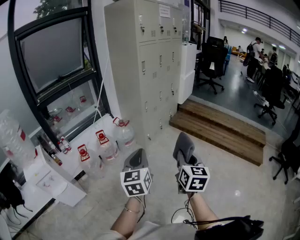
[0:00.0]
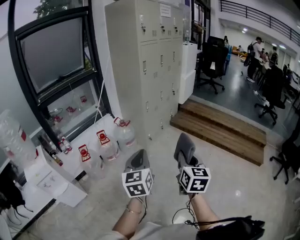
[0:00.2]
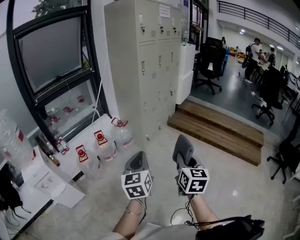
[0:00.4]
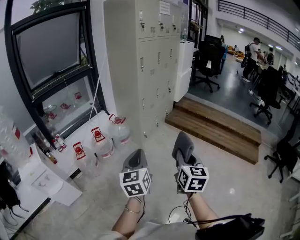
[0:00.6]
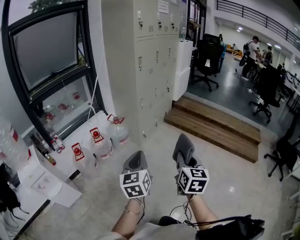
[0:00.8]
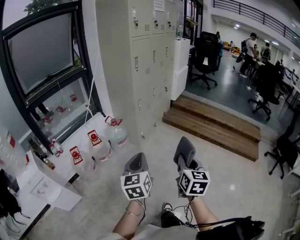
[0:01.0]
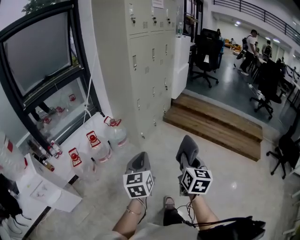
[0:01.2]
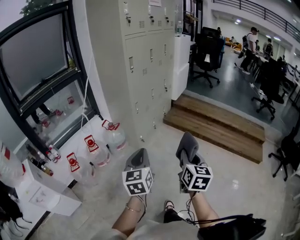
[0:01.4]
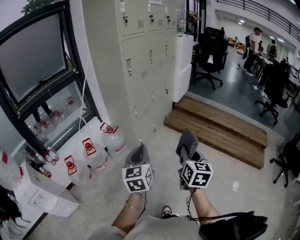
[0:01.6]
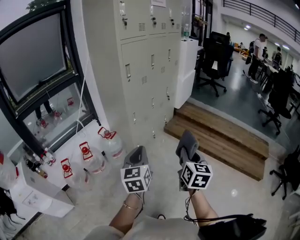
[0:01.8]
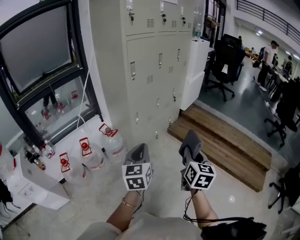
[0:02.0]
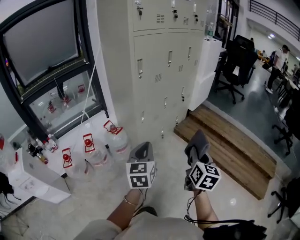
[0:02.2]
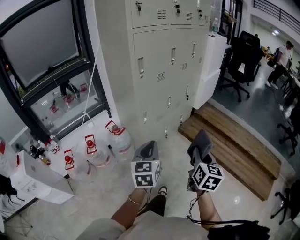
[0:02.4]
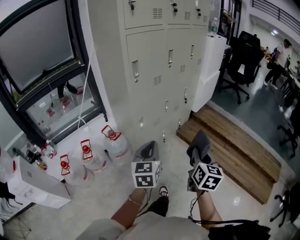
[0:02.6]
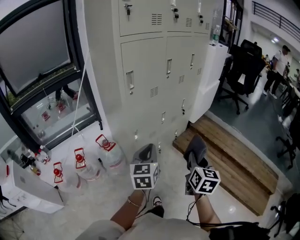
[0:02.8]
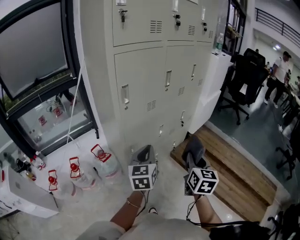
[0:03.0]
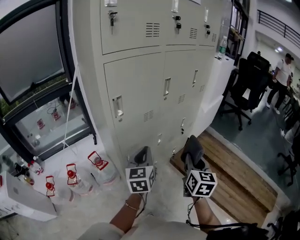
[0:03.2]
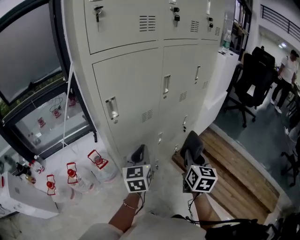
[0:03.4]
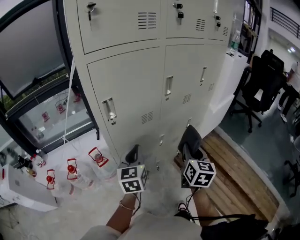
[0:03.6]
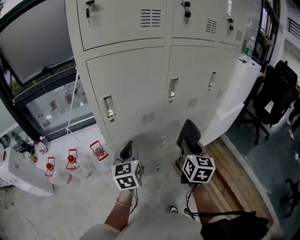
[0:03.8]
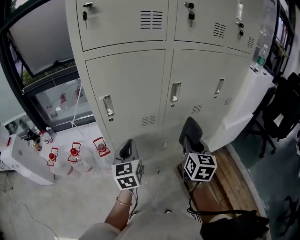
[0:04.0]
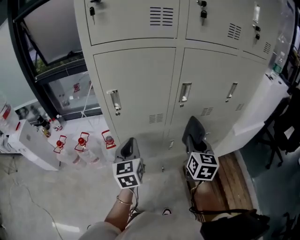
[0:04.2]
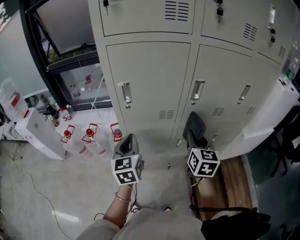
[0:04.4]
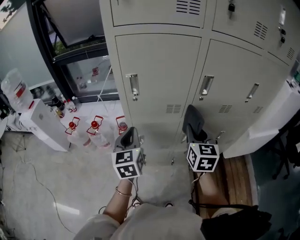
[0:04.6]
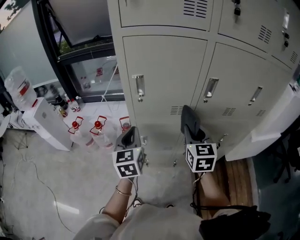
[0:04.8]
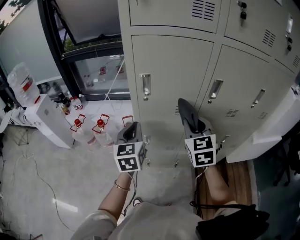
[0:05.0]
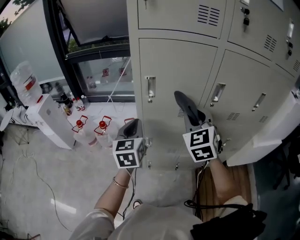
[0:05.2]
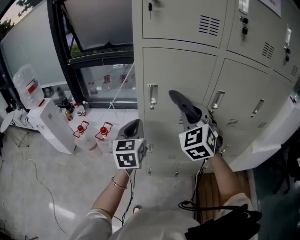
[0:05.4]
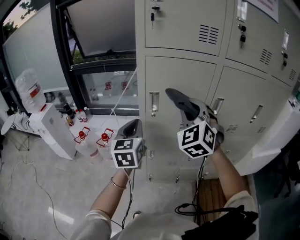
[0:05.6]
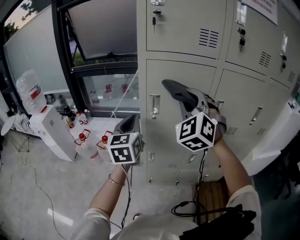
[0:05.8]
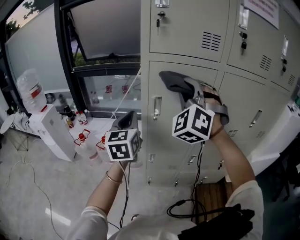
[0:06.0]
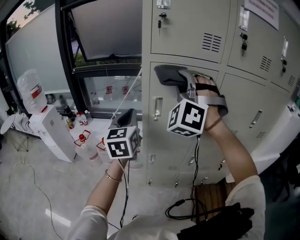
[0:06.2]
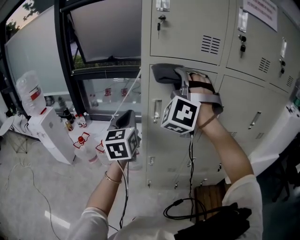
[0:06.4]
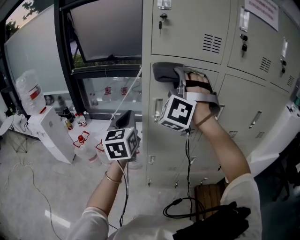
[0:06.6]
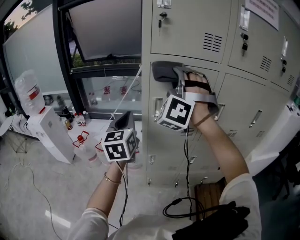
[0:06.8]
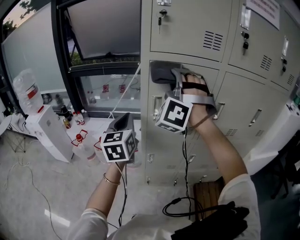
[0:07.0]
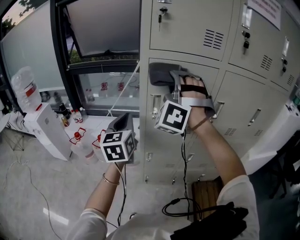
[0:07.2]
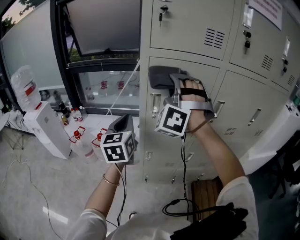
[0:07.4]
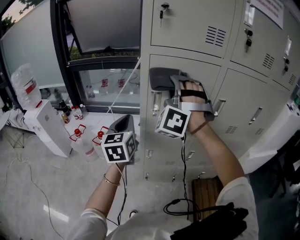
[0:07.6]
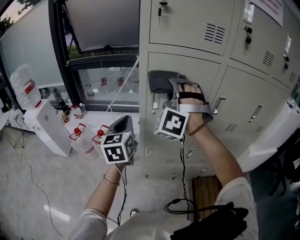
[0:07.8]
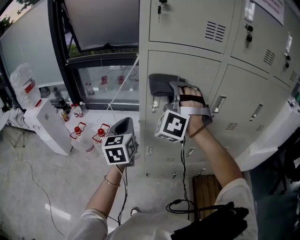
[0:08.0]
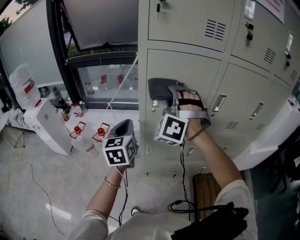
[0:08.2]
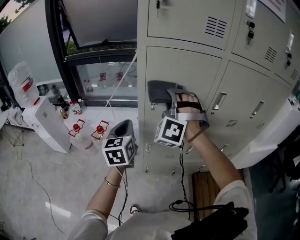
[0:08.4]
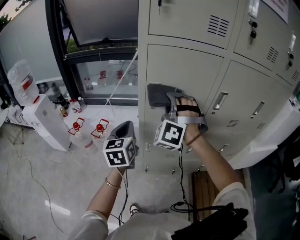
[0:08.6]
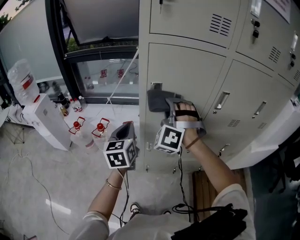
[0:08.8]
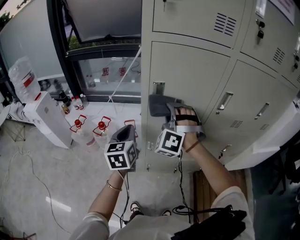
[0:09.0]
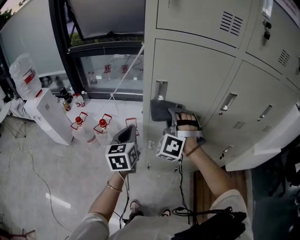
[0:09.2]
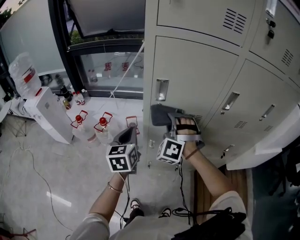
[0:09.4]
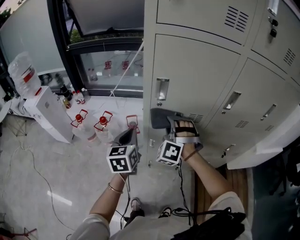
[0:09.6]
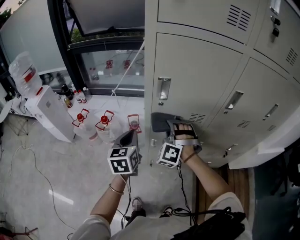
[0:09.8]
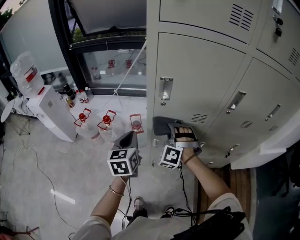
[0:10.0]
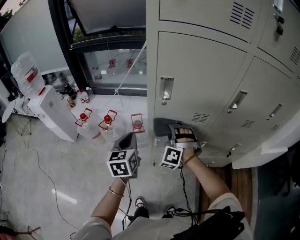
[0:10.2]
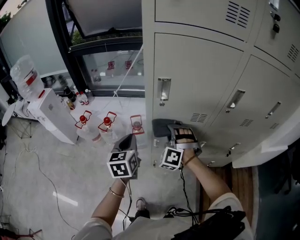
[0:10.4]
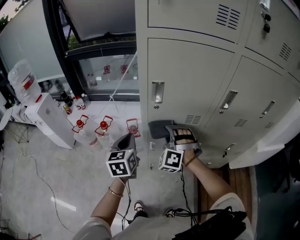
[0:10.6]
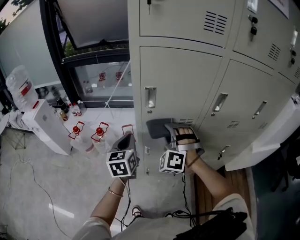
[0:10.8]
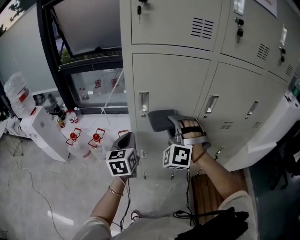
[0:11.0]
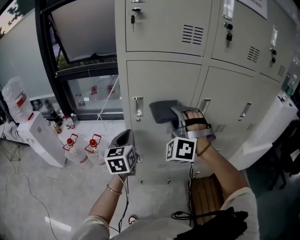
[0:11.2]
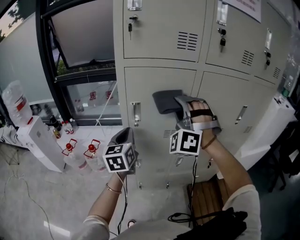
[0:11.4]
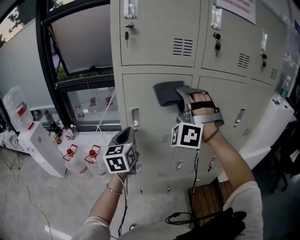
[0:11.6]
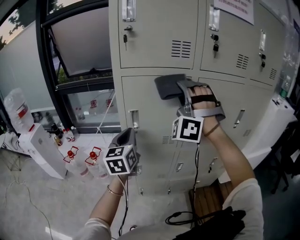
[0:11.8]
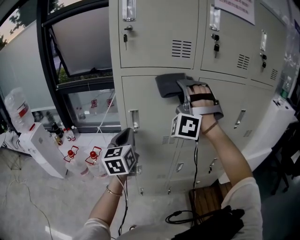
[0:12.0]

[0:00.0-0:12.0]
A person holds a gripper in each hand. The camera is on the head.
0.0 to 1.6 s: Both grippers travel together forward, about 25 cm.
1.6 to 3.0 s: Both grippers are carried forward, roughly 50 cm.
3.0 to 4.4 s: The right gripper changes place by roughly 30 cm, and changes its angle by approximately 40 degrees; the left gripper moves roughly 10 cm, and rotates roughly 40 degrees.
4.4 to 6.0 s: The right gripper goes some 35 cm upward and to the left, and rolls counterclockwise, seen from behind, by approximately 80 degrees; the left gripper travels upward and to the left by approximately 20 cm.
6.0 to 7.6 s: The right gripper shifts by some 5 cm.
7.6 to 9.0 s: The left gripper travels downward by some 10 cm. Meanwhile the right gripper is displaced downward by some 15 cm.
9.0 to 10.4 s: The right gripper shifts about 15 cm downward; the left gripper moves downward, roughly 5 cm.
10.4 to 12.0 s: The left gripper goes some 20 cm upward and to the right, and rotates about 20 degrees, while the right gripper goes roughly 40 cm upward, and tilts its fingers approximately 40 degrees upward.

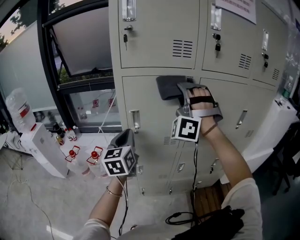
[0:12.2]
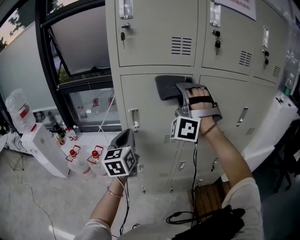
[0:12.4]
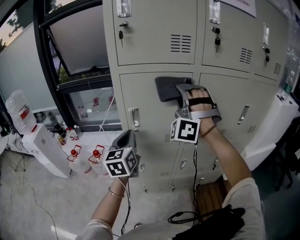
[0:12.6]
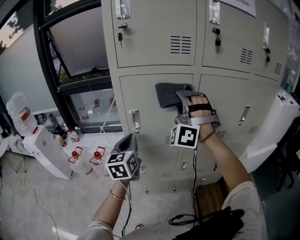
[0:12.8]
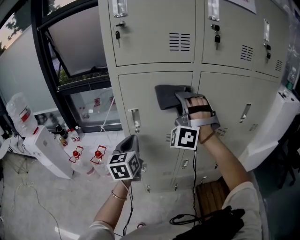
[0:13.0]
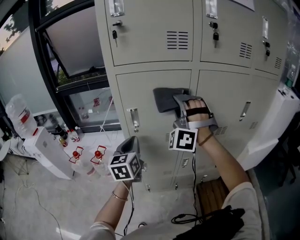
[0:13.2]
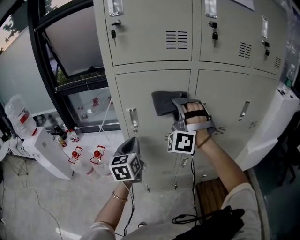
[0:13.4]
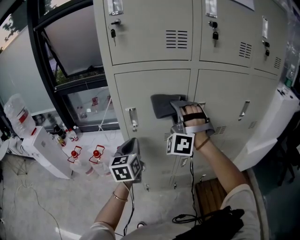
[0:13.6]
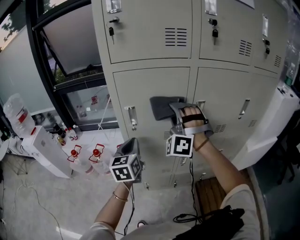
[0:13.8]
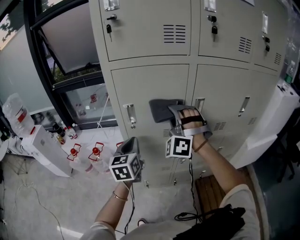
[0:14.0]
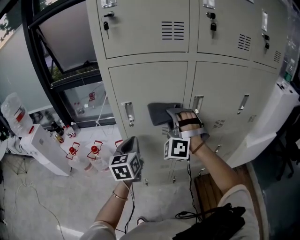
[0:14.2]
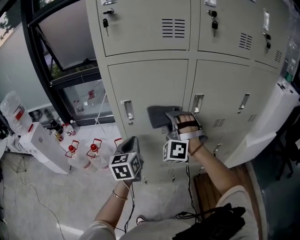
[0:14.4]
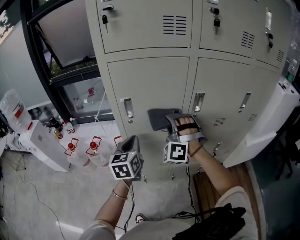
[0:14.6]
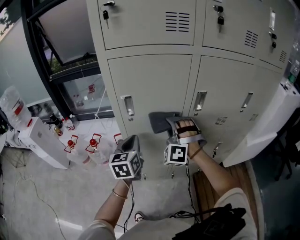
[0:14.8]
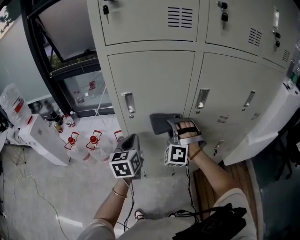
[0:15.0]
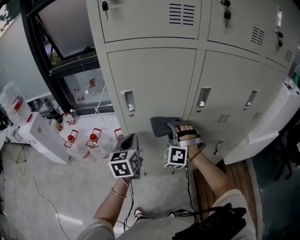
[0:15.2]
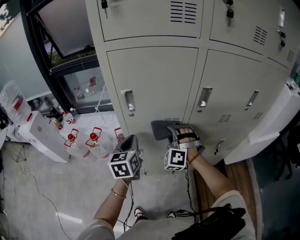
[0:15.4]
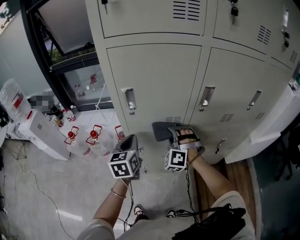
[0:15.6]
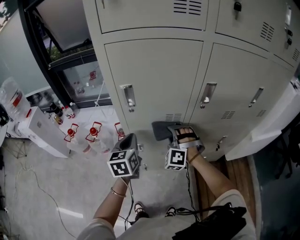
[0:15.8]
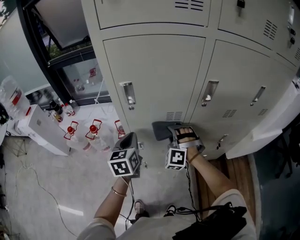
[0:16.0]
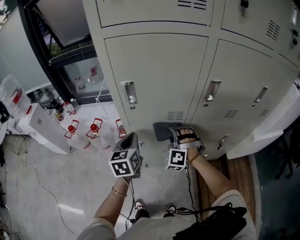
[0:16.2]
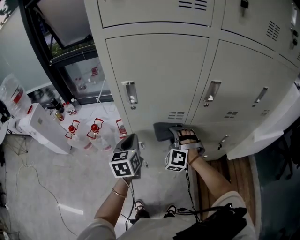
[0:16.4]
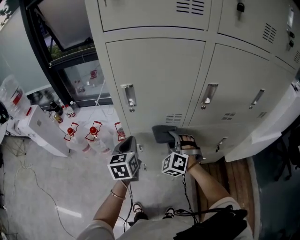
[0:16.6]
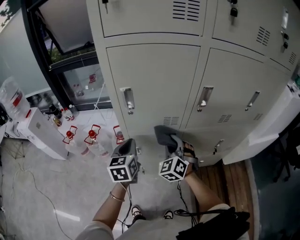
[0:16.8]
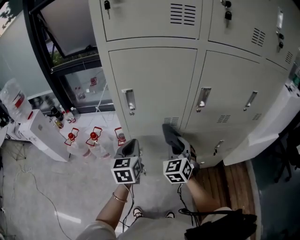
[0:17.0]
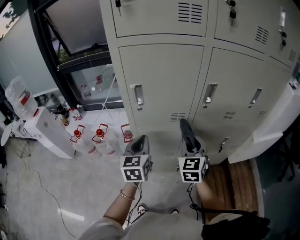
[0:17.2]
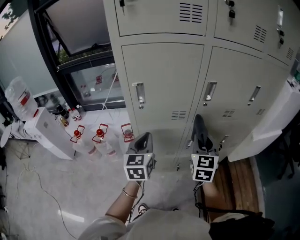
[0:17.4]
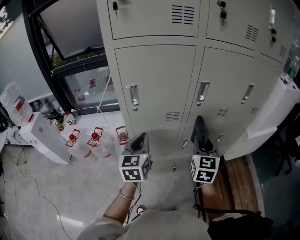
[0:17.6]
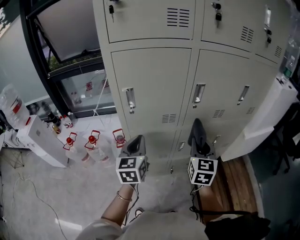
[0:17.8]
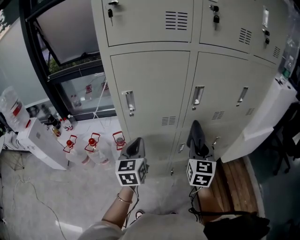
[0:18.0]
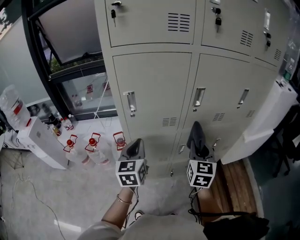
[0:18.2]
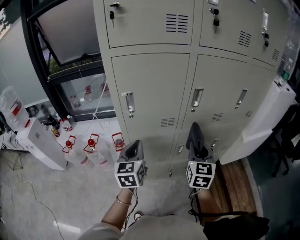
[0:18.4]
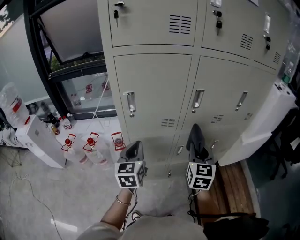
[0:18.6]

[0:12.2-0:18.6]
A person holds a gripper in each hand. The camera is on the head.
12.2 to 13.8 s: The right gripper shifts approximately 10 cm downward, while the left gripper is displaced downward by some 10 cm.
13.8 to 15.4 s: The right gripper travels downward by about 20 cm, and swivels about 20 degrees, while the left gripper is displaced downward by roughly 5 cm.
15.4 to 17.0 s: The right gripper goes some 5 cm backward, goes downward and returns, approximately 5 cm each way, and rolls clockwise, seen from behind, by roughly 50 degrees.
17.0 to 18.6 s: The right gripper heads to the right, upward and backward, covering roughly 15 cm, and rotates some 30 degrees.

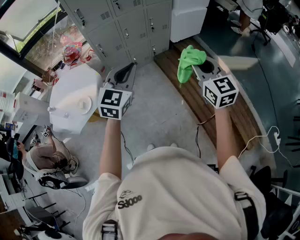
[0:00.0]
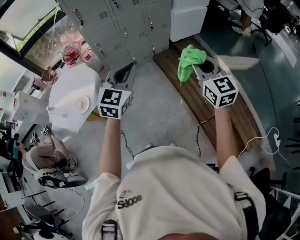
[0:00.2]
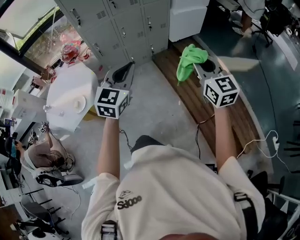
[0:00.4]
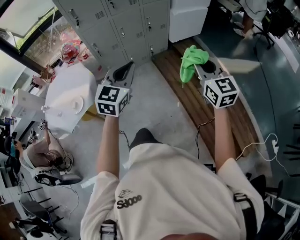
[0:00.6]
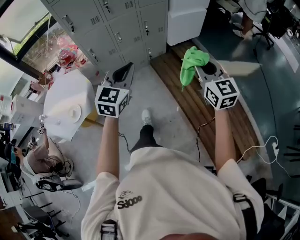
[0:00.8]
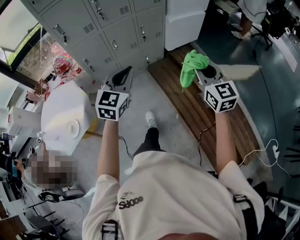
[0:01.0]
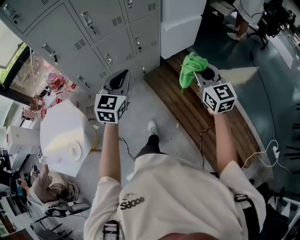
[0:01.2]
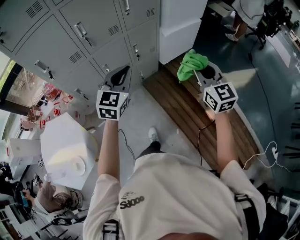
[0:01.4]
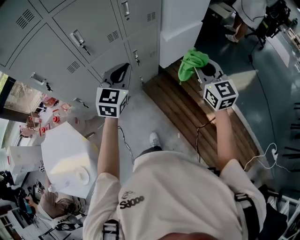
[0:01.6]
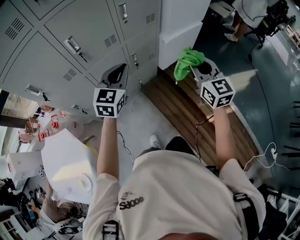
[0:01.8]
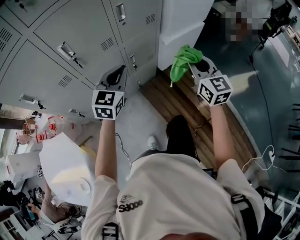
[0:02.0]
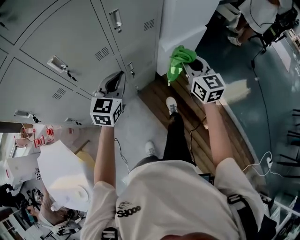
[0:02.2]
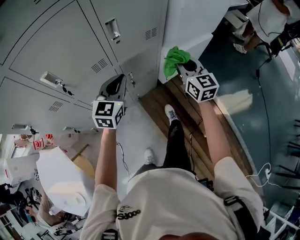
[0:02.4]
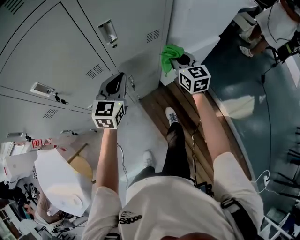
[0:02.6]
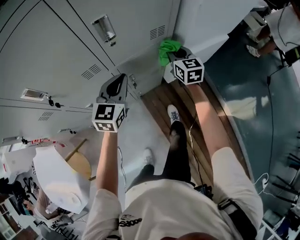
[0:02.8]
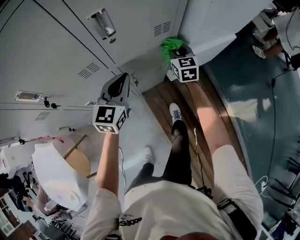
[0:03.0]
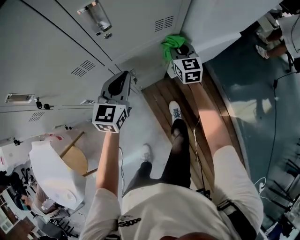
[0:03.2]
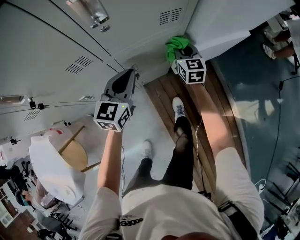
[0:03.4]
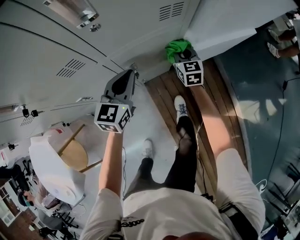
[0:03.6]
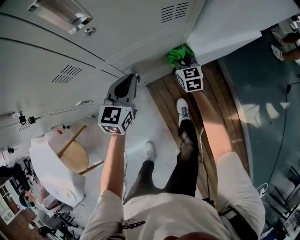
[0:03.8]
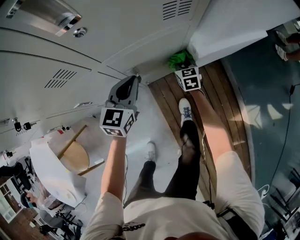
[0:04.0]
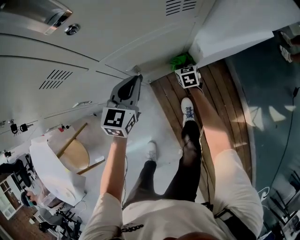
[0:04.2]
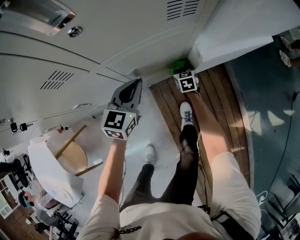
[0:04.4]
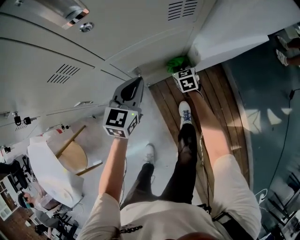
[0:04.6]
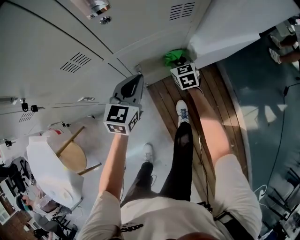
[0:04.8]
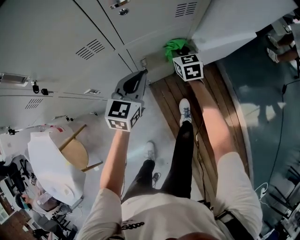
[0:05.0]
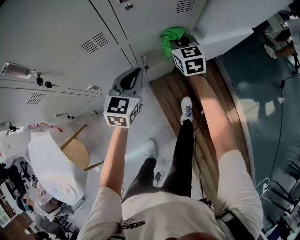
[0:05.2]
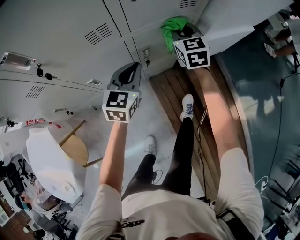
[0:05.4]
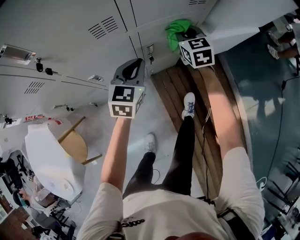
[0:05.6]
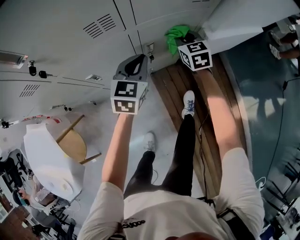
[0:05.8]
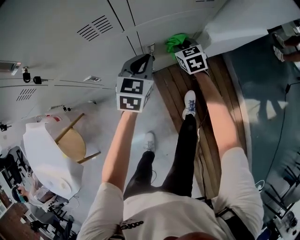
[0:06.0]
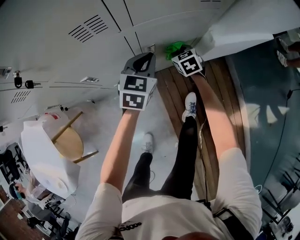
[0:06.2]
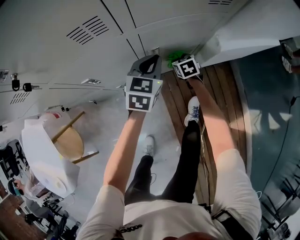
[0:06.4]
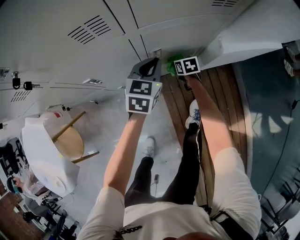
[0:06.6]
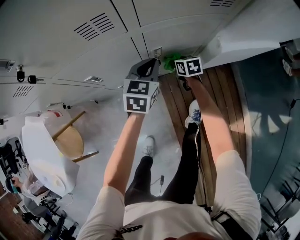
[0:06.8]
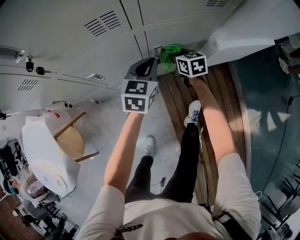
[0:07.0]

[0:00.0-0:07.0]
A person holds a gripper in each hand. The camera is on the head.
0.0 to 1.4 s: The two grippers travel together, forward, roughly 40 cm.
1.4 to 2.8 s: The pair of grippers is taken forward, roughly 50 cm.
2.8 to 4.2 s: The right gripper is displaced downward by approximately 40 cm, and swivels about 30 degrees; the left gripper is displaced downward by roughly 20 cm.
4.2 to 5.6 s: The left gripper moves upward, backward and to the left, about 10 cm. The right gripper shifts about 30 cm upward, and turns by some 20 degrees.
5.6 to 7.0 s: The right gripper travels downward by some 15 cm, and swivels some 30 degrees, while the left gripper travels downward by some 5 cm.
